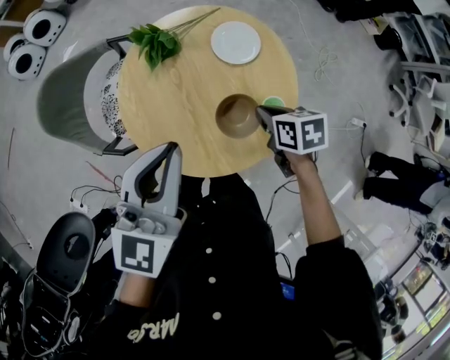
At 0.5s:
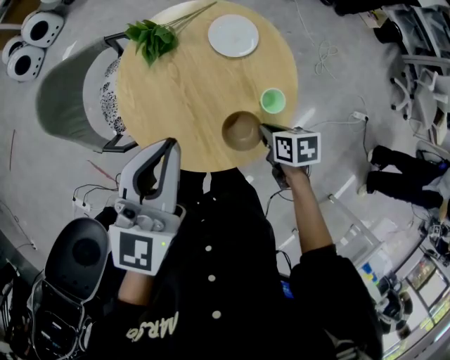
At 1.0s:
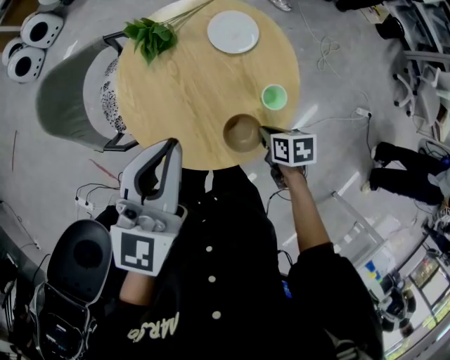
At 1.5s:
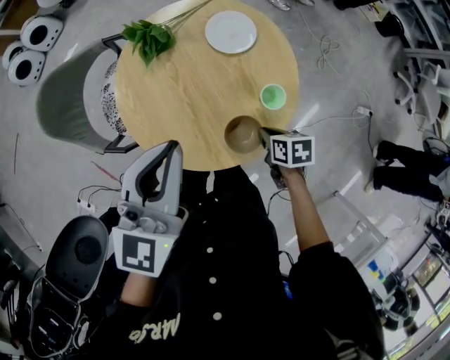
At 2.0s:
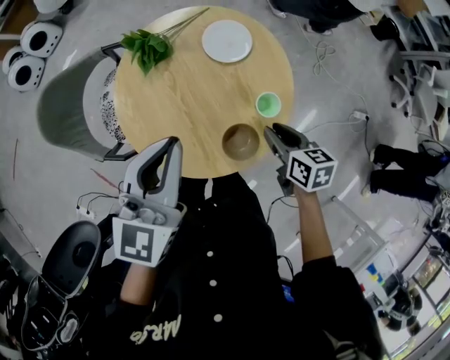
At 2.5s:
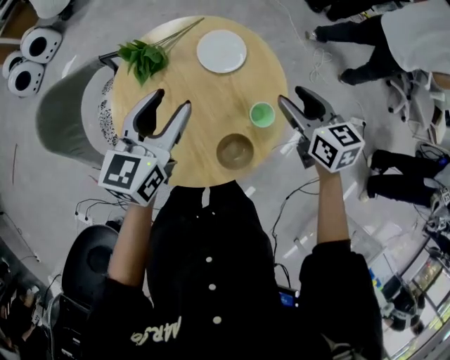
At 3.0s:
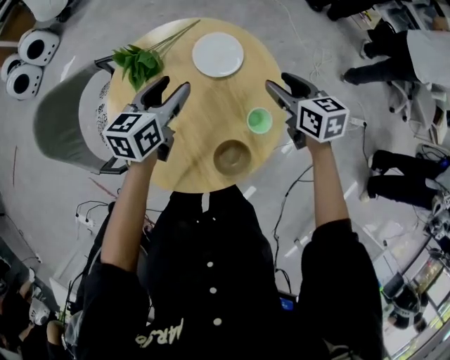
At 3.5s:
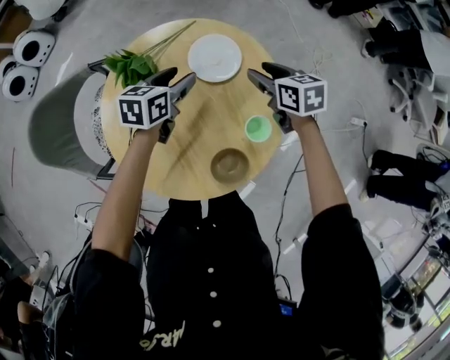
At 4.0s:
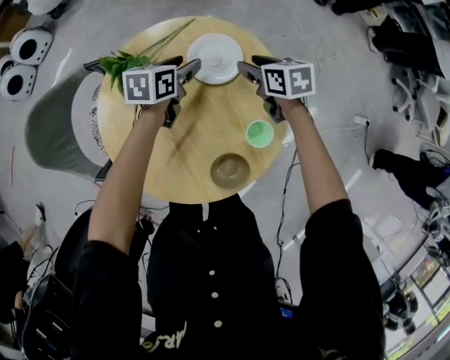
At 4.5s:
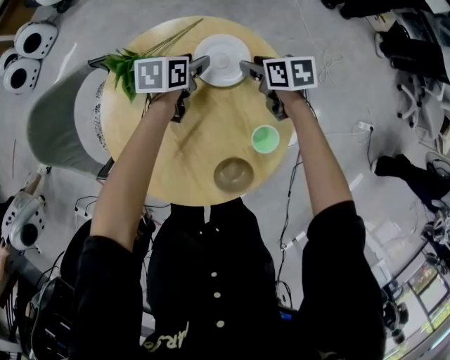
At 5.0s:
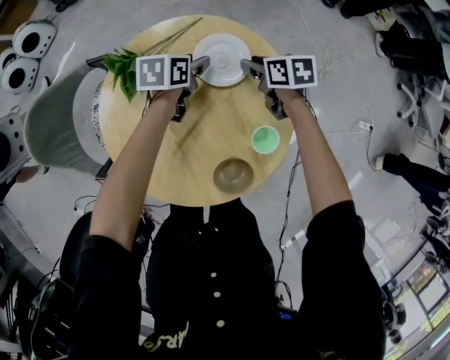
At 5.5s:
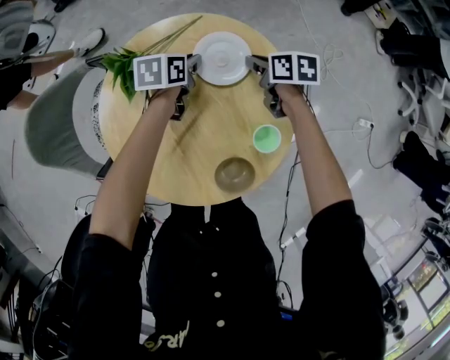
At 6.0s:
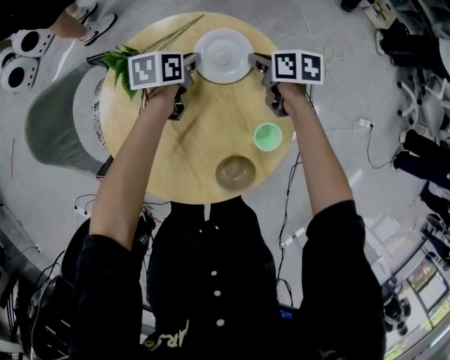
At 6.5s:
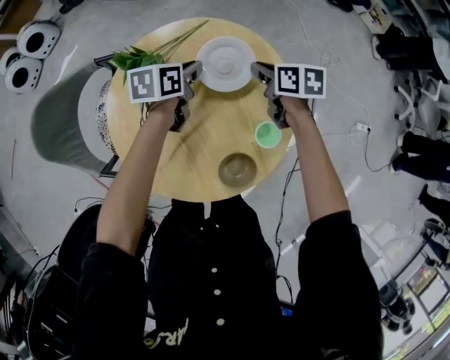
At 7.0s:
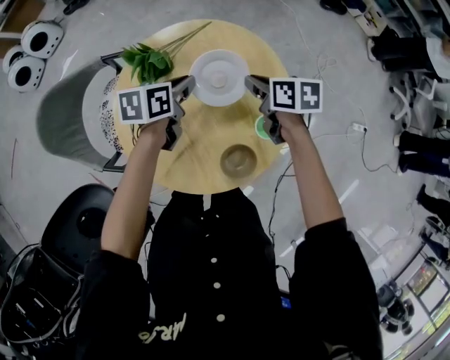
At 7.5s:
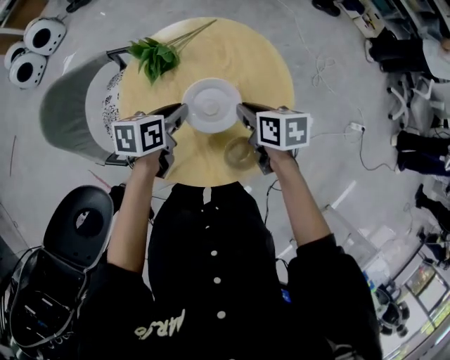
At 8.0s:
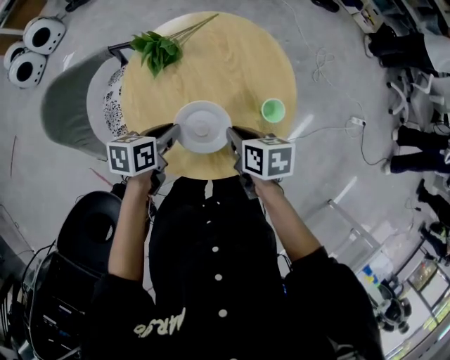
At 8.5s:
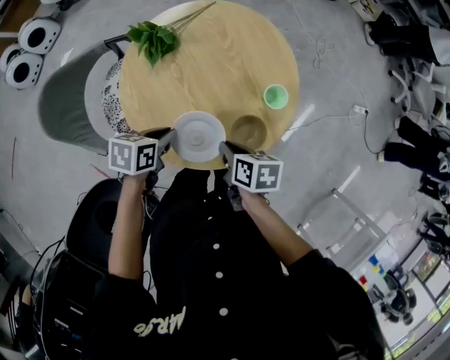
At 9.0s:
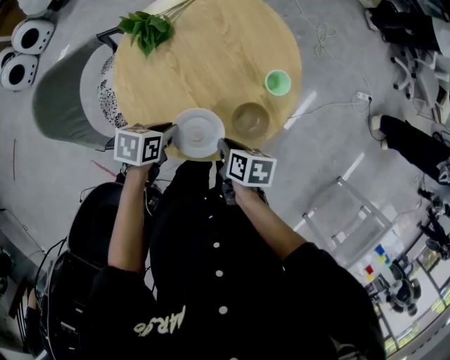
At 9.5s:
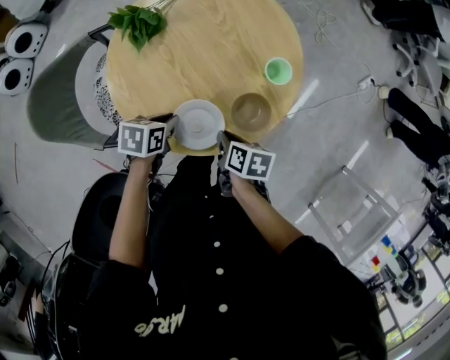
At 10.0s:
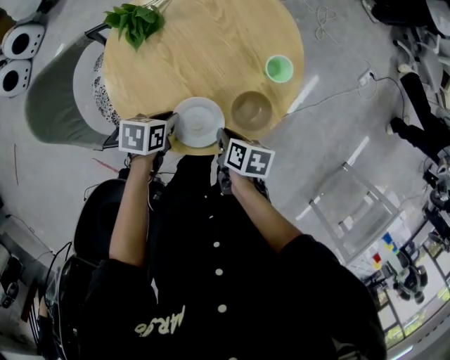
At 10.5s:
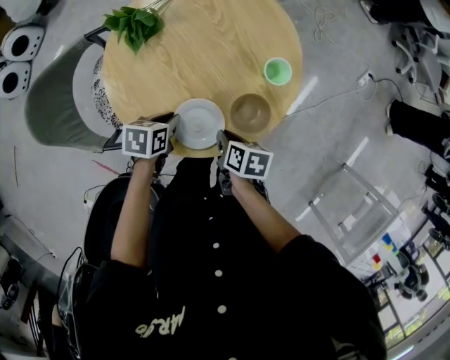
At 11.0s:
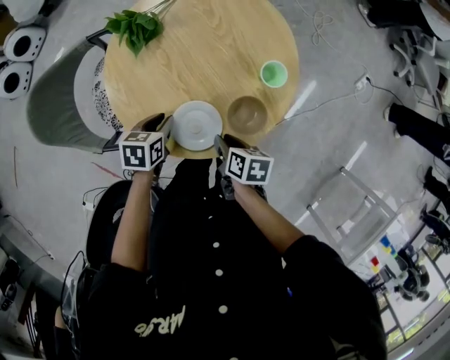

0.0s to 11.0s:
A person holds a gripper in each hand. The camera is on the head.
0.0s to 2.0s: The right gripper heads backward, covering approximately 5 cm.
2.0s to 3.5s: The right gripper shifts roughly 25 cm forward. Meanwhile the left gripper heads downward and forward, covering some 30 cm, turns by approximately 40 degrees, and opens.
3.5s to 5.5s: The left gripper goes some 10 cm downward and forward, and closes; the right gripper shifts some 5 cm downward, and closes up.
5.5s to 7.5s: The left gripper travels backward, upward and to the left by roughly 20 cm. The right gripper heads backward and upward, covering some 20 cm.
7.5s to 9.0s: The left gripper moves backward and downward, about 15 cm, and rotates approximately 20 degrees; the right gripper travels backward by some 20 cm, and rotates some 30 degrees.
9.0s to 11.0s: There are only small adjustments of the grippers.

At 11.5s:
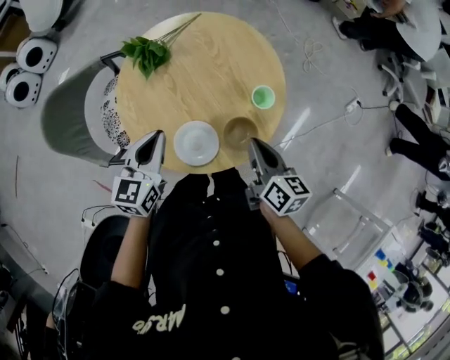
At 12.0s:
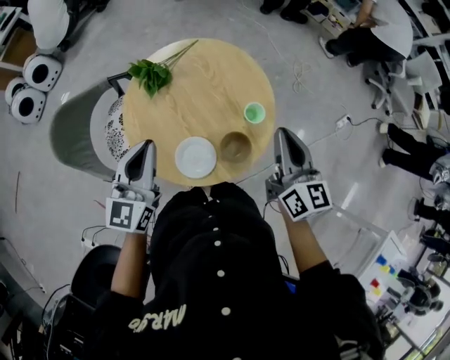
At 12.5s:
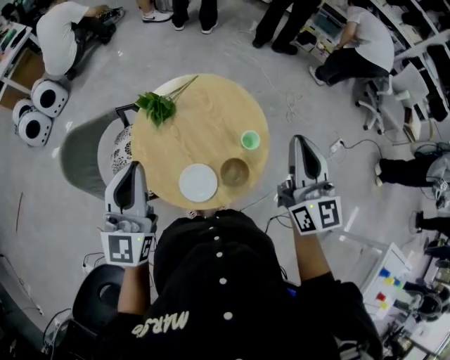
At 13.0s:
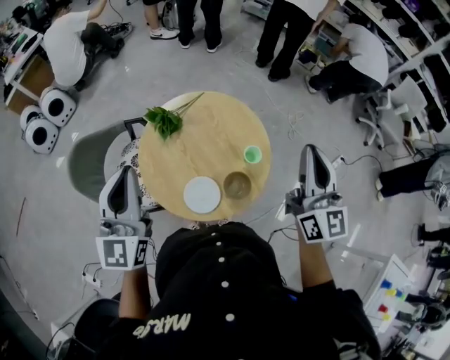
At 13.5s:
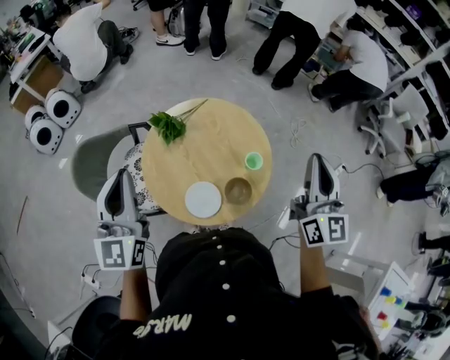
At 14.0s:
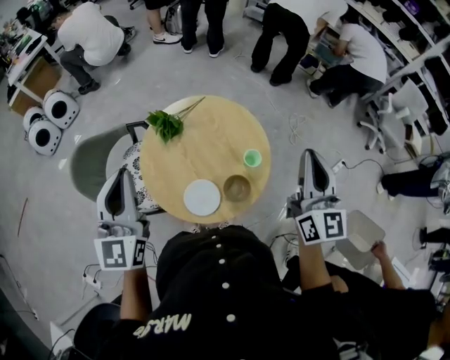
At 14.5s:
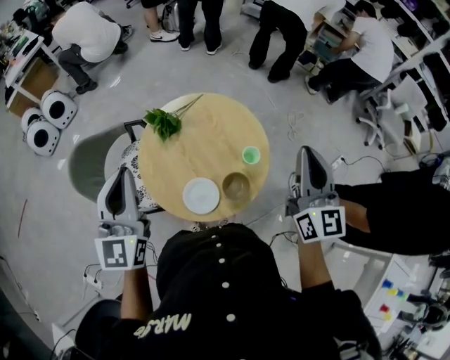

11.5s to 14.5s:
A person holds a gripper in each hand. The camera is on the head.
11.5s to 13.0s: Both grippers travel together upward, about 30 cm. The right gripper points its fingers approximately 40 degrees further upward; the left gripper rotates approximately 40 degrees.
13.0s to 14.5s: There are only small adjustments of the grippers.

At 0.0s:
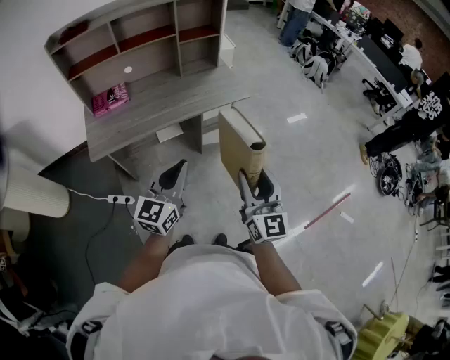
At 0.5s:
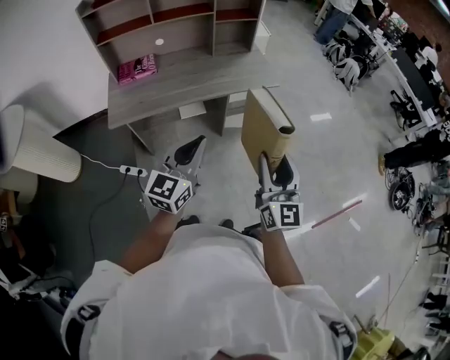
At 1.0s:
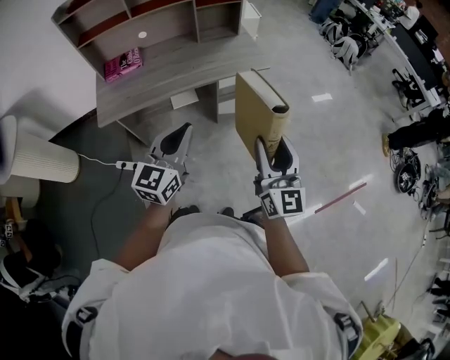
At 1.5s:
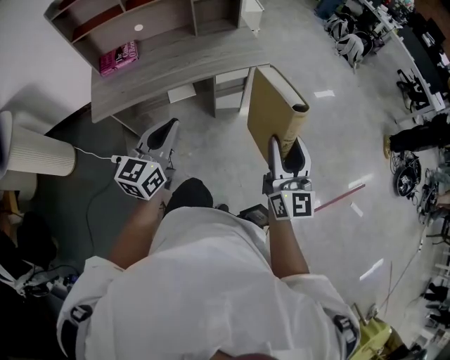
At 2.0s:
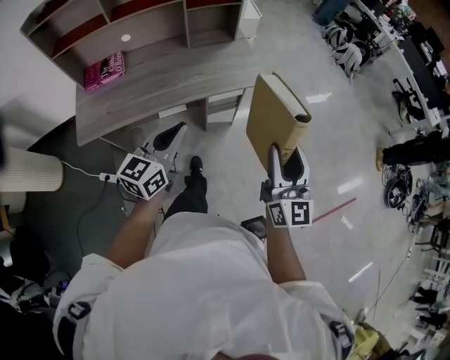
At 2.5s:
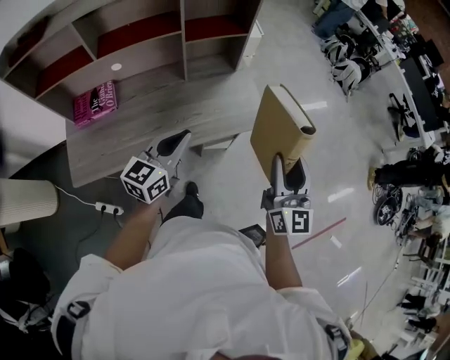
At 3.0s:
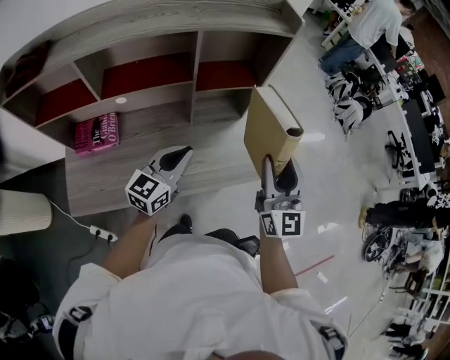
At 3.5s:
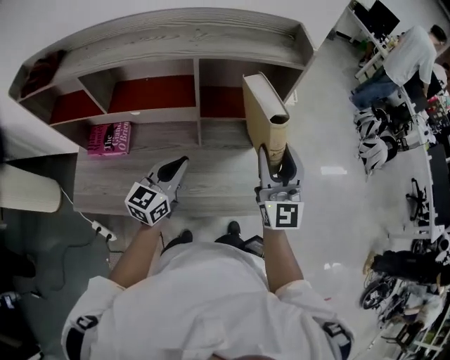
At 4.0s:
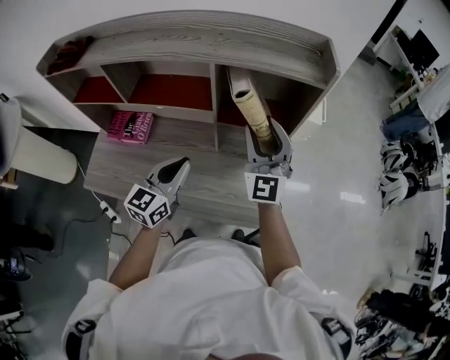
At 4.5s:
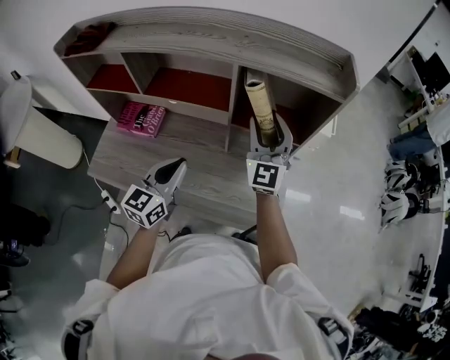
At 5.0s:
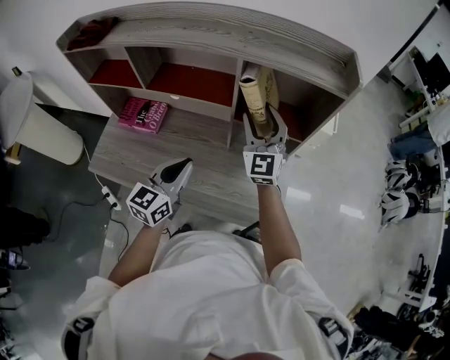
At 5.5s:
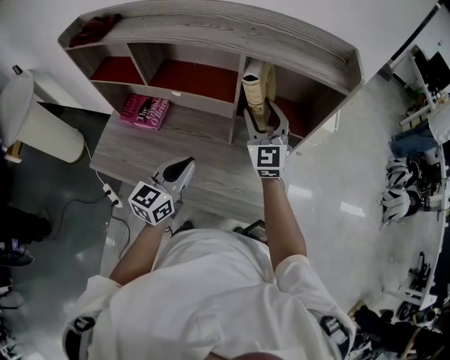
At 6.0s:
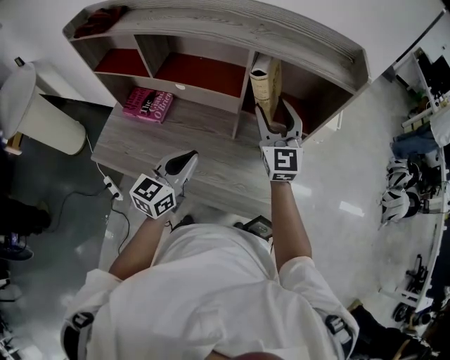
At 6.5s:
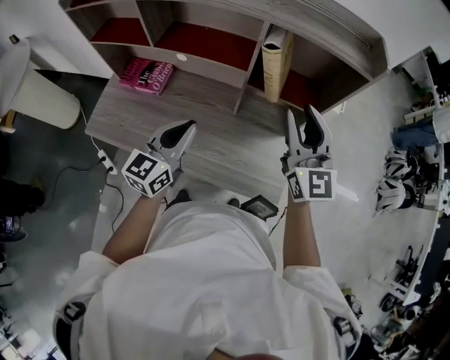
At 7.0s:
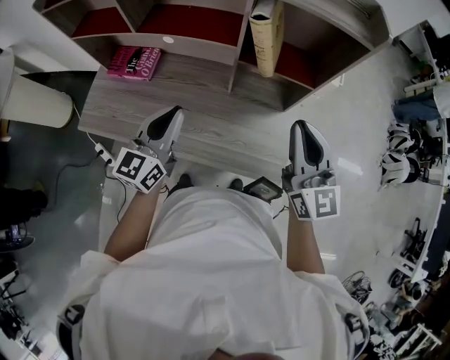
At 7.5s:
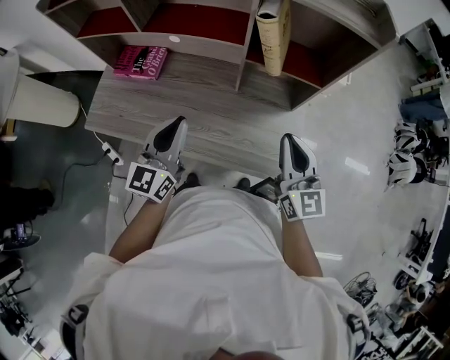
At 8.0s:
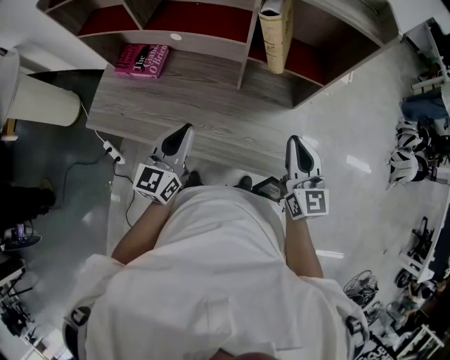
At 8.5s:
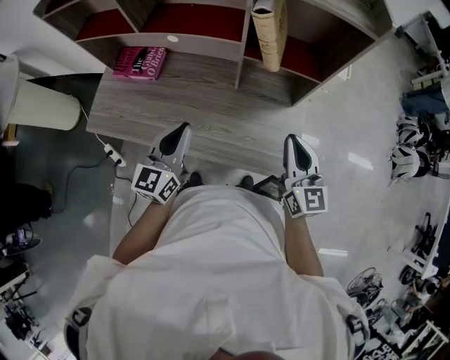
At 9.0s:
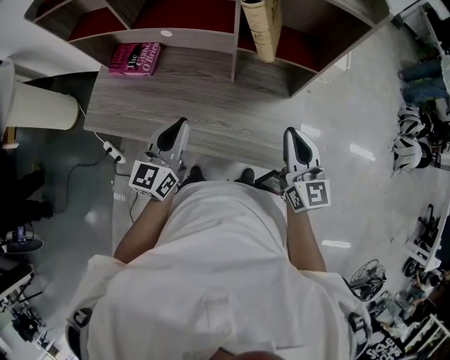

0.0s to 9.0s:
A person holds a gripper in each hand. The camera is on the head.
0.0s to 2.0s: The left gripper goes some 20 cm forward. Meanwhile the right gripper goes approximately 20 cm forward and to the right.
2.0s to 4.5s: The left gripper shifts by roughly 40 cm, and turns by roughly 30 degrees. Meanwhile the right gripper changes place by about 70 cm, and rotates approximately 40 degrees.
4.5s to 7.0s: The right gripper heads backward, covering roughly 15 cm, turns by roughly 30 degrees, and closes.
7.0s to 9.0s: The left gripper heads downward, covering approximately 5 cm, while the right gripper shifts roughly 10 cm downward.

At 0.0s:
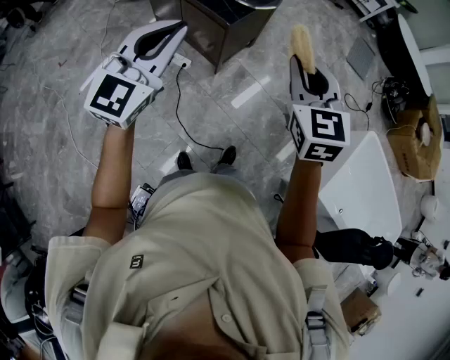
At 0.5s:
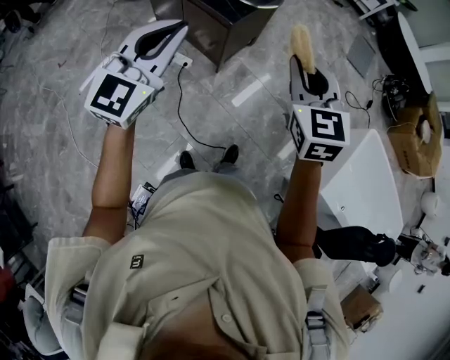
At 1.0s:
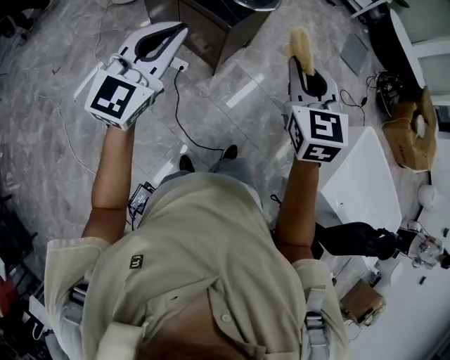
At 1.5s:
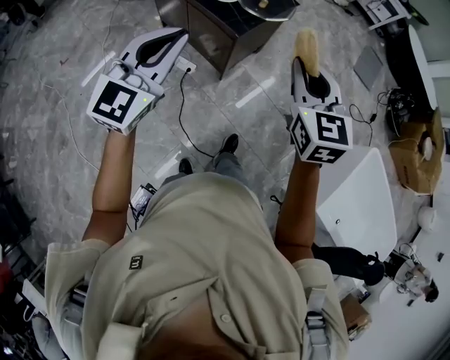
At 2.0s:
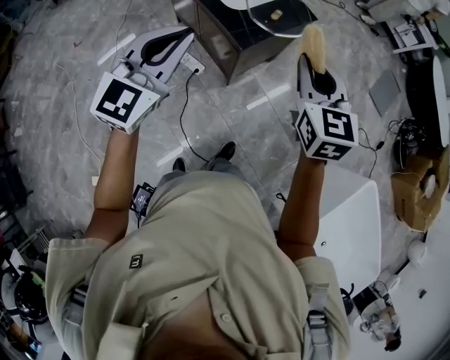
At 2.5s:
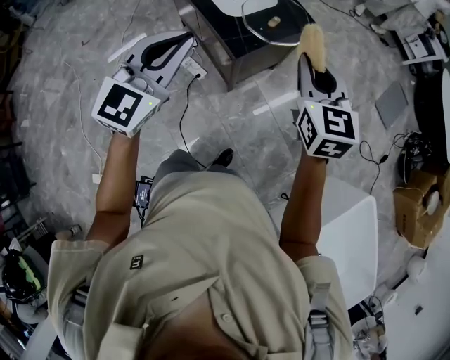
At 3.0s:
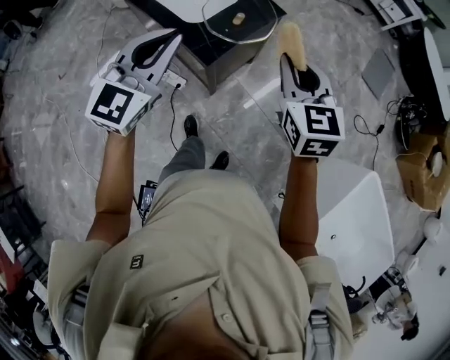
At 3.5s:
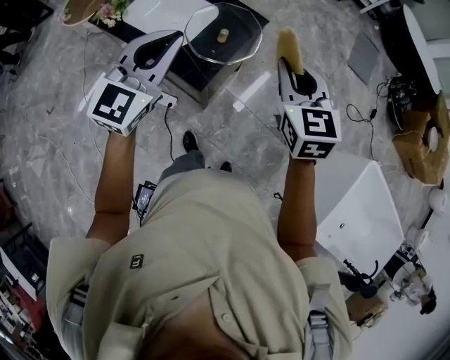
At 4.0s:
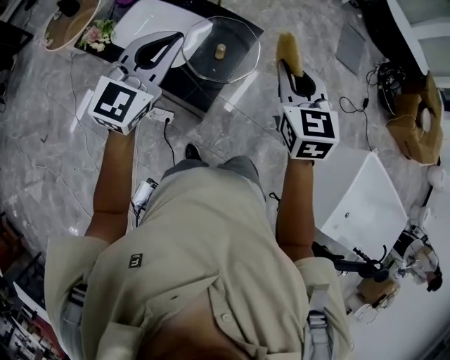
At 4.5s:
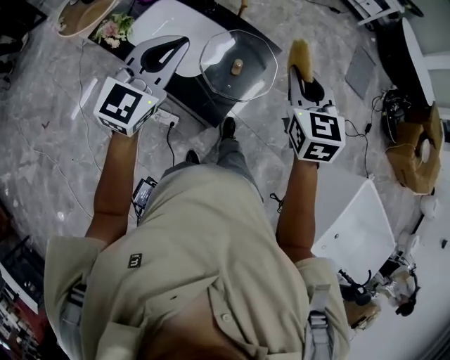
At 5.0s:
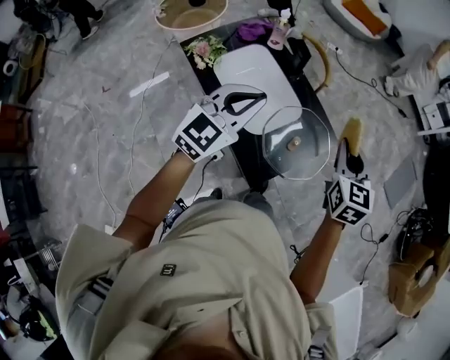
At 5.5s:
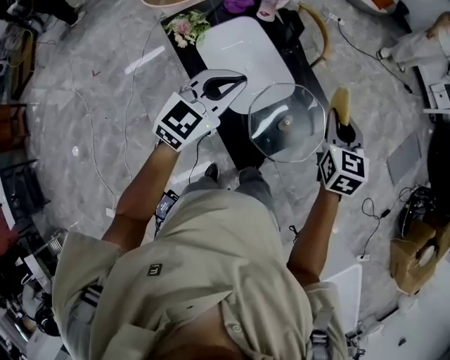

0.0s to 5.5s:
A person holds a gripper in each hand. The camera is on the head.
0.0s to 2.0s: The two grippers go about 25 cm forward.
2.0s to 3.5s: The left gripper travels forward by approximately 25 cm; the right gripper is displaced forward and to the right by about 20 cm.
3.5s to 5.5s: The right gripper shifts about 35 cm forward and to the left, while the left gripper is displaced forward, to the left and downward by about 30 cm.
